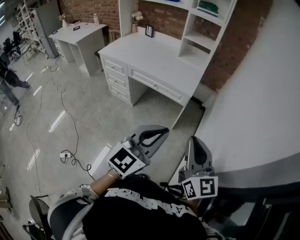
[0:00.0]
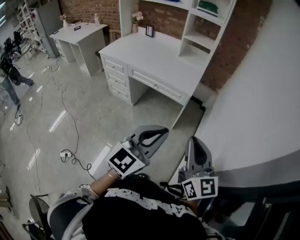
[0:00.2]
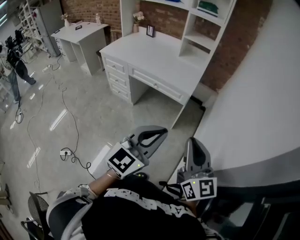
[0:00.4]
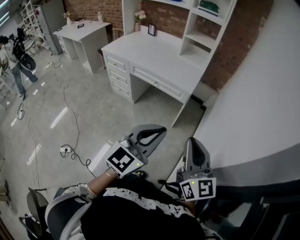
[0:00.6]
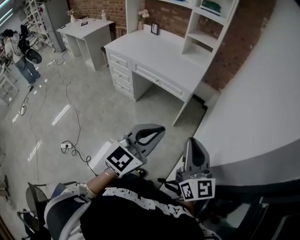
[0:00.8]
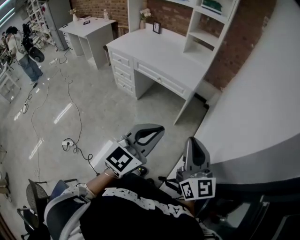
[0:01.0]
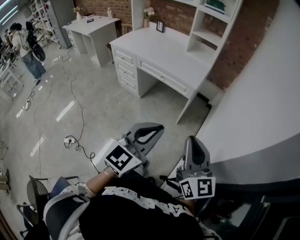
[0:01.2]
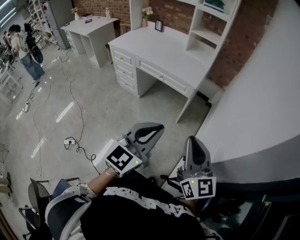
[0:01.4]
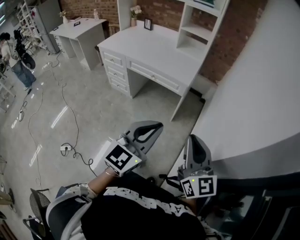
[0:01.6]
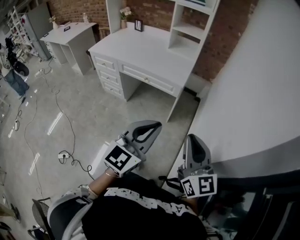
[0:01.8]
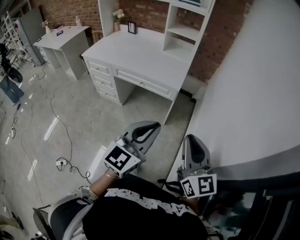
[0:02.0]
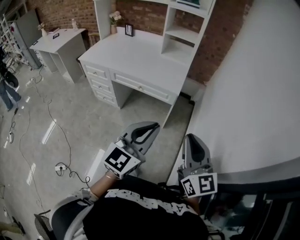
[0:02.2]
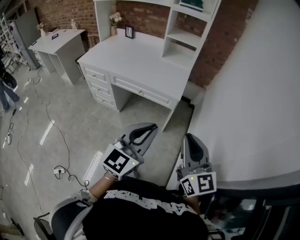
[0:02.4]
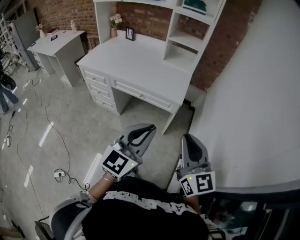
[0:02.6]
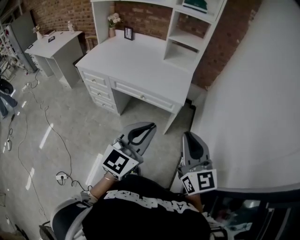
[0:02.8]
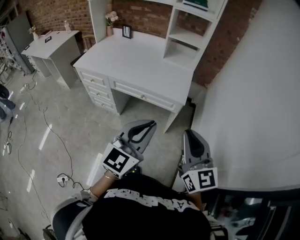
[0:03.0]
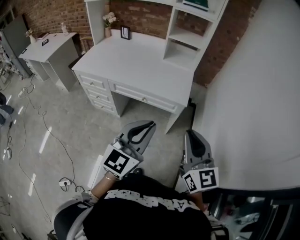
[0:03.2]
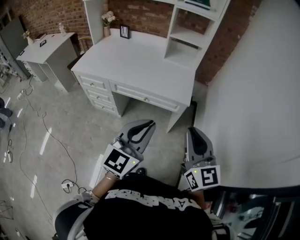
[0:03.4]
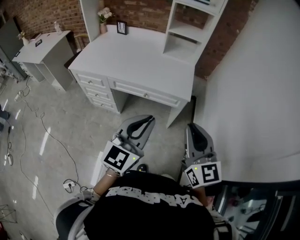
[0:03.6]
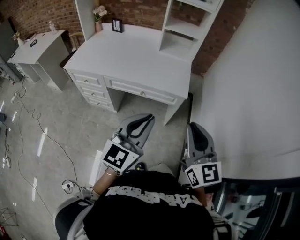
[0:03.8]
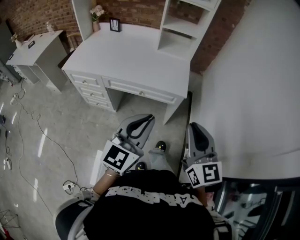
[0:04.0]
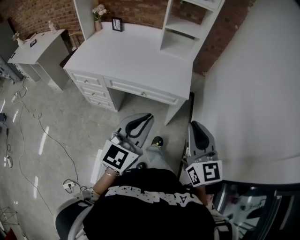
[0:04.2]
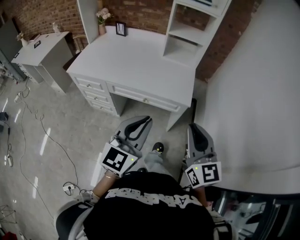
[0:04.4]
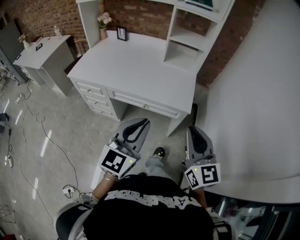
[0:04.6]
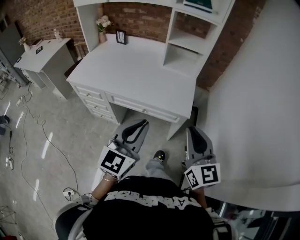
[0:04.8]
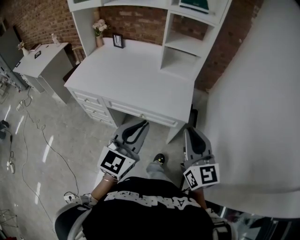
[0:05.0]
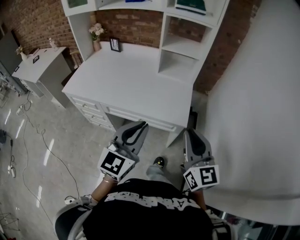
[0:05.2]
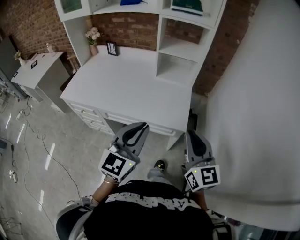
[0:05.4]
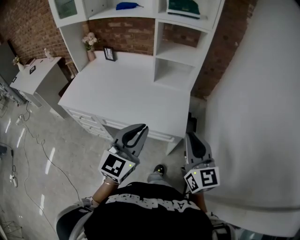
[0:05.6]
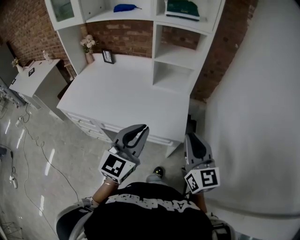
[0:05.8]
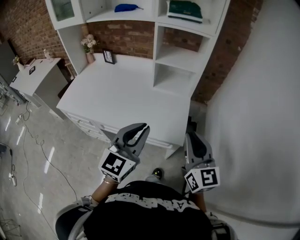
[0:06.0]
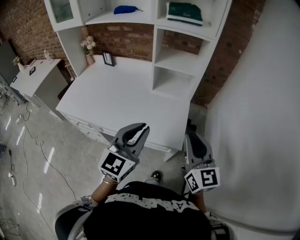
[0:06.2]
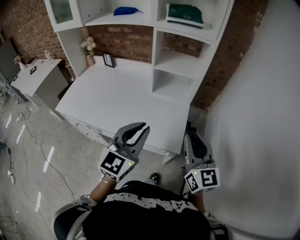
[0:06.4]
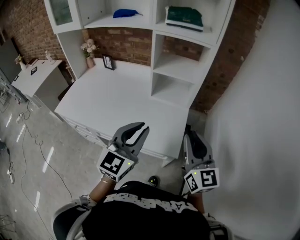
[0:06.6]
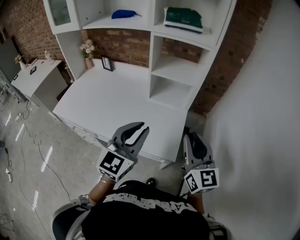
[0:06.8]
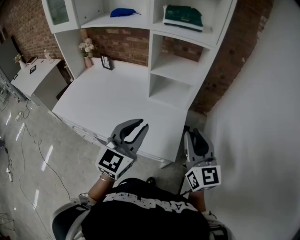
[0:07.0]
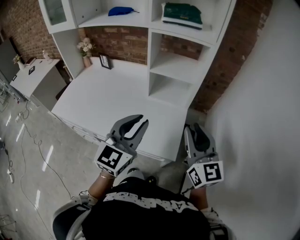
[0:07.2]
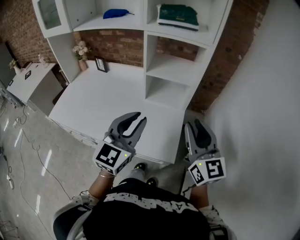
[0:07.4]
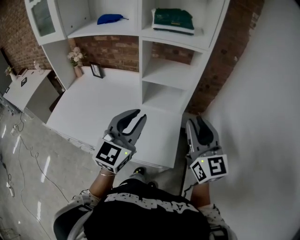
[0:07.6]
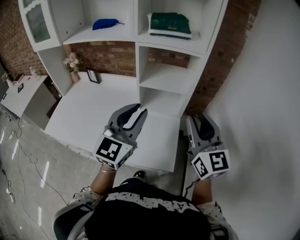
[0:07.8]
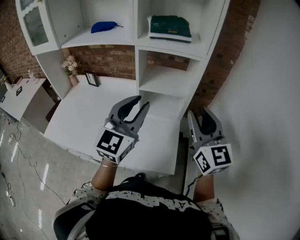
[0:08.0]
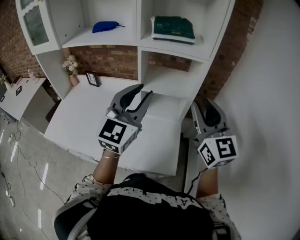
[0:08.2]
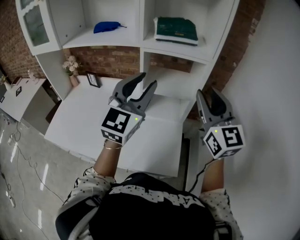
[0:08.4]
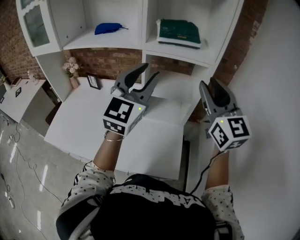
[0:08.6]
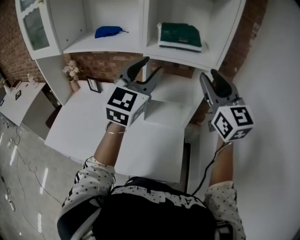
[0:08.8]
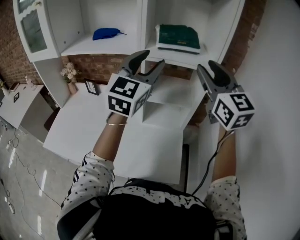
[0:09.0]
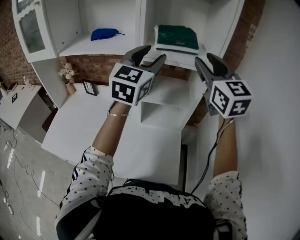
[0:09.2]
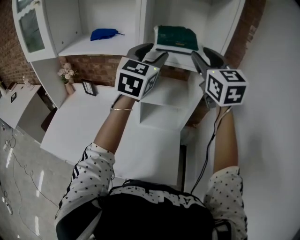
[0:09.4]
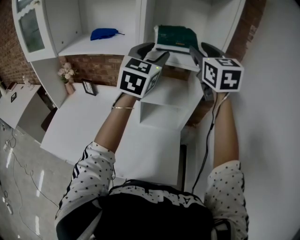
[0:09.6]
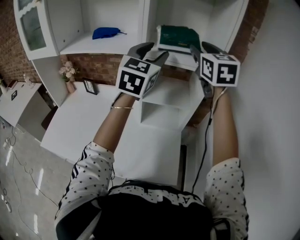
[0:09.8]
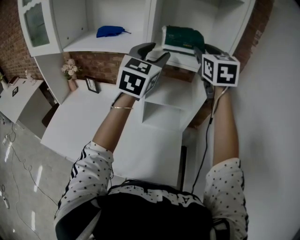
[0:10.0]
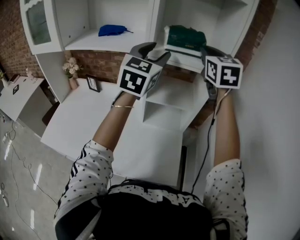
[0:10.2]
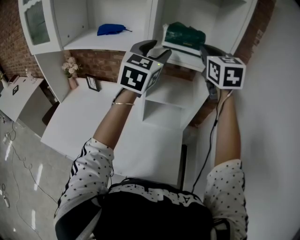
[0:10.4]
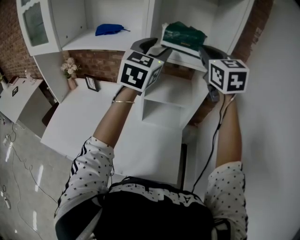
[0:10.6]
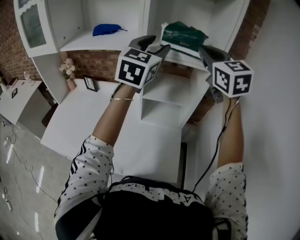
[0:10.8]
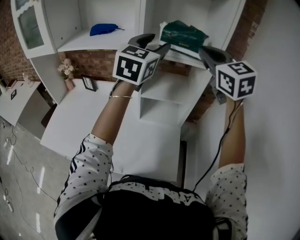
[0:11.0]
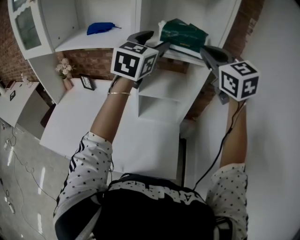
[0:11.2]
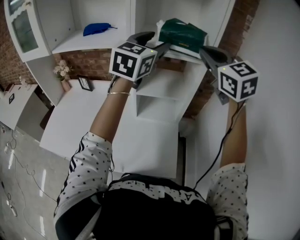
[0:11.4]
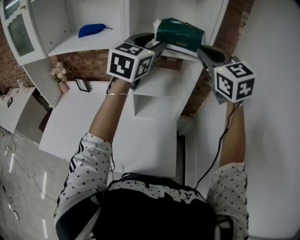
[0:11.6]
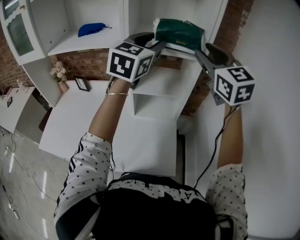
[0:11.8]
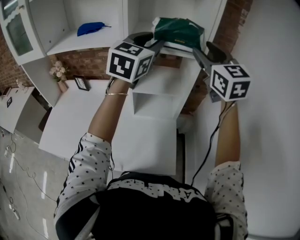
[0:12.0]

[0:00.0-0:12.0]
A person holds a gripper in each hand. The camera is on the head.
0:00.0 to 0:01.6: The right gripper moves approximately 5 cm.
0:01.6 to 0:03.0: Both grippers travel together forward and to the left, some 20 cm.
0:03.0 to 0:04.4: The left gripper is displaced to the left and forward by some 10 cm. The right gripper moves forward, some 5 cm.
0:04.4 to 0:06.0: Both grippers travel together forward, about 20 cm.
0:06.0 to 0:07.6: The right gripper moves forward and upward, roughly 15 cm, while the left gripper heads forward, covering about 15 cm.
0:07.6 to 0:09.0: The grippers both shift forward and upward by approximately 25 cm. The left gripper opens.
0:09.0 to 0:10.4: The left gripper shifts roughly 5 cm forward. Meanwhile the right gripper shifts roughly 10 cm forward, and closes.
0:10.4 to 0:12.0: The left gripper is displaced to the right by roughly 5 cm. The right gripper goes about 10 cm backward and to the right, and opens.

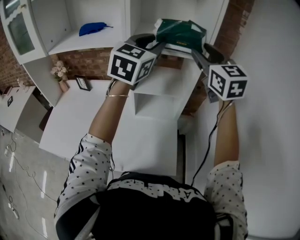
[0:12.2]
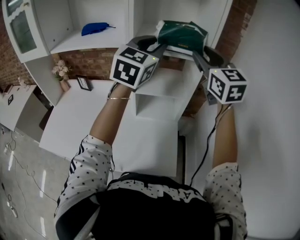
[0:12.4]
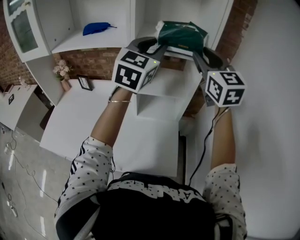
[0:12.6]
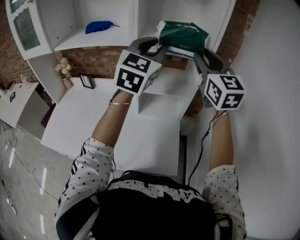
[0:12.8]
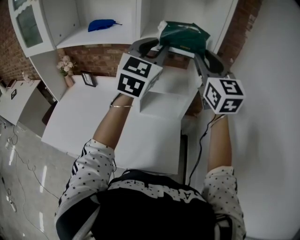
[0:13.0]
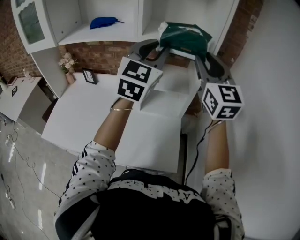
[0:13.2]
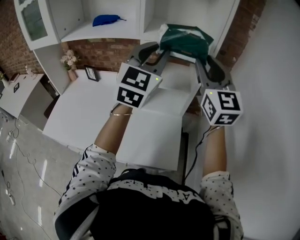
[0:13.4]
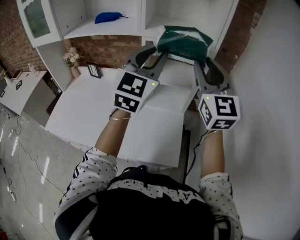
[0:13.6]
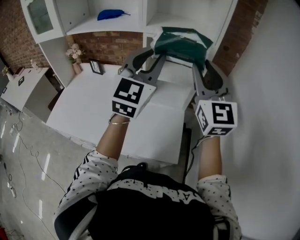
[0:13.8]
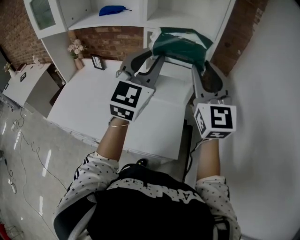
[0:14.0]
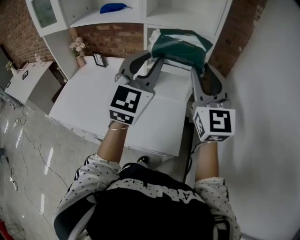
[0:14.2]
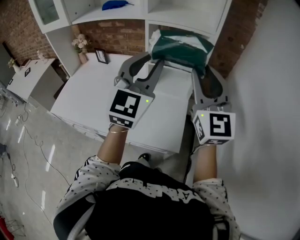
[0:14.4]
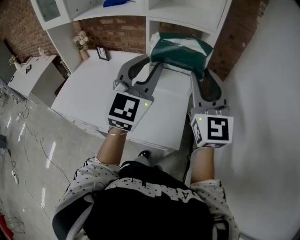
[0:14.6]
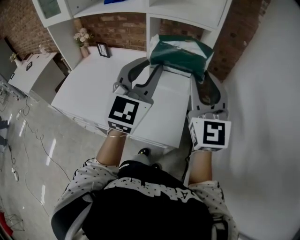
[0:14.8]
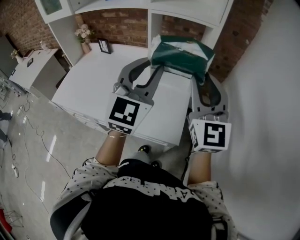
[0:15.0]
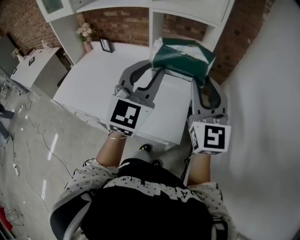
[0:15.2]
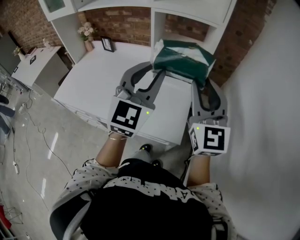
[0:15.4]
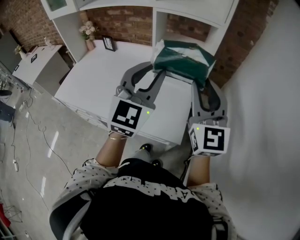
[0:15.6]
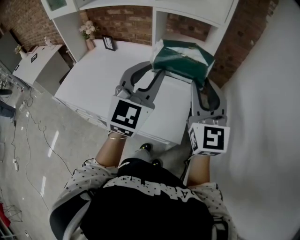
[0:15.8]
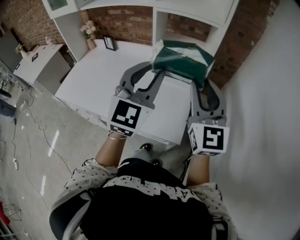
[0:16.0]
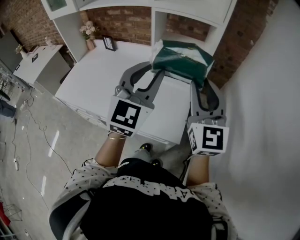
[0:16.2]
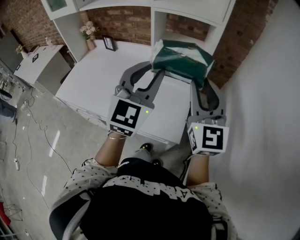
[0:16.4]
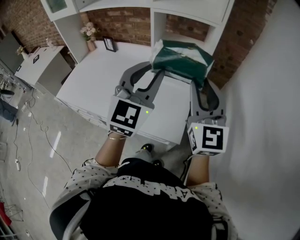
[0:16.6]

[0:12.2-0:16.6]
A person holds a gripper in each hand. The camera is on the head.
0:12.2 to 0:13.6: Both grippers travel together backward, about 10 cm.
0:13.6 to 0:15.2: Both grippers travel together backward and downward, approximately 15 cm.
0:15.2 to 0:16.6: Both grippers stay put.

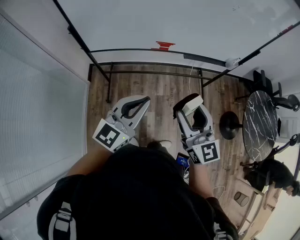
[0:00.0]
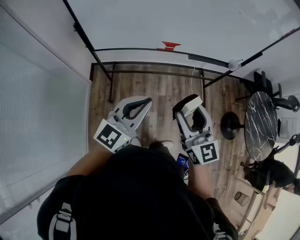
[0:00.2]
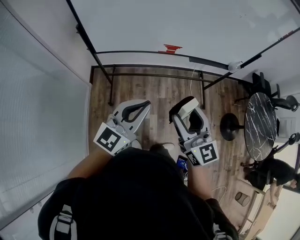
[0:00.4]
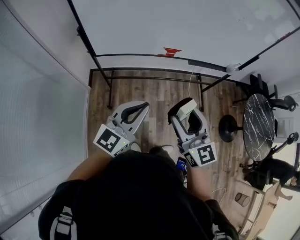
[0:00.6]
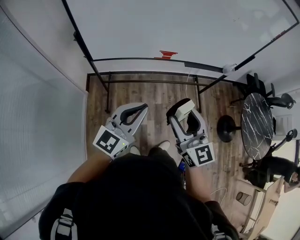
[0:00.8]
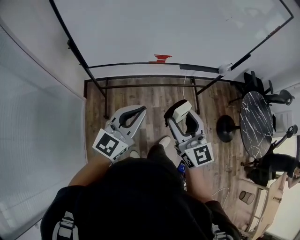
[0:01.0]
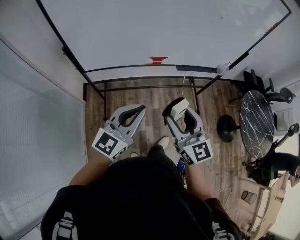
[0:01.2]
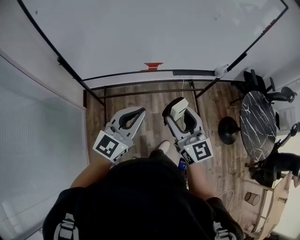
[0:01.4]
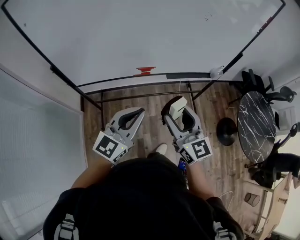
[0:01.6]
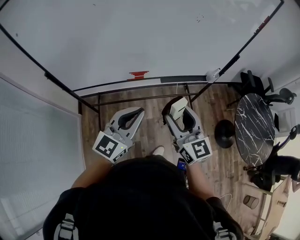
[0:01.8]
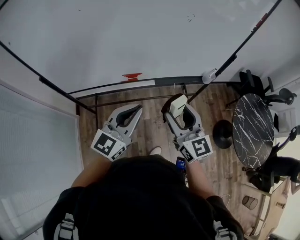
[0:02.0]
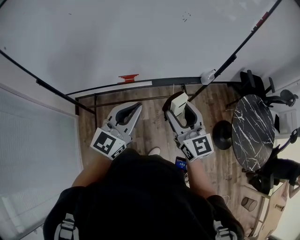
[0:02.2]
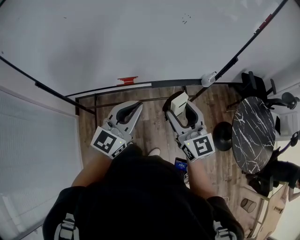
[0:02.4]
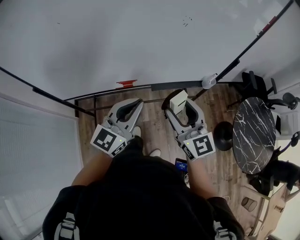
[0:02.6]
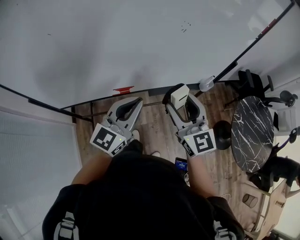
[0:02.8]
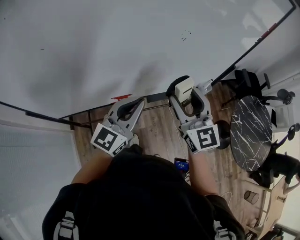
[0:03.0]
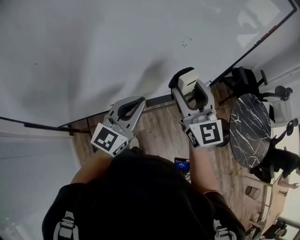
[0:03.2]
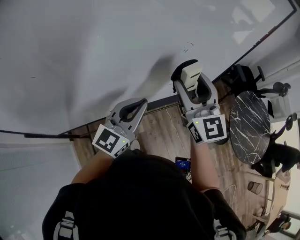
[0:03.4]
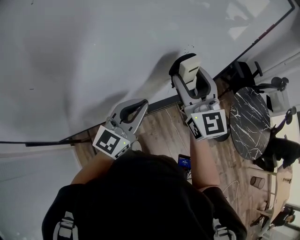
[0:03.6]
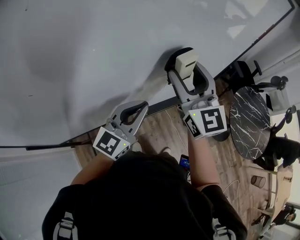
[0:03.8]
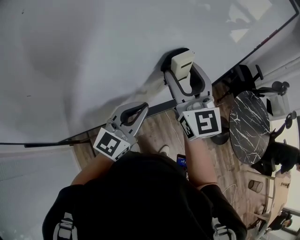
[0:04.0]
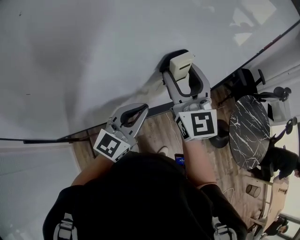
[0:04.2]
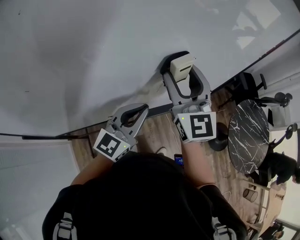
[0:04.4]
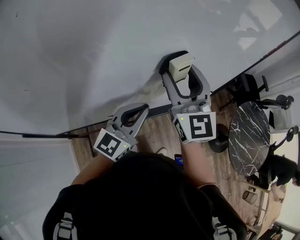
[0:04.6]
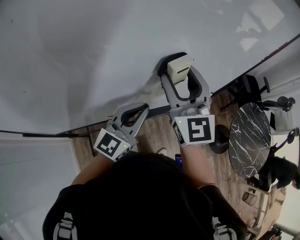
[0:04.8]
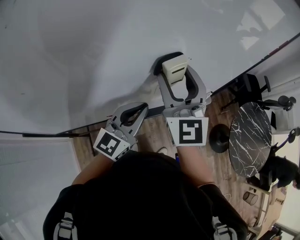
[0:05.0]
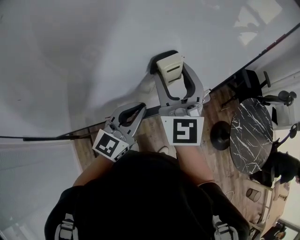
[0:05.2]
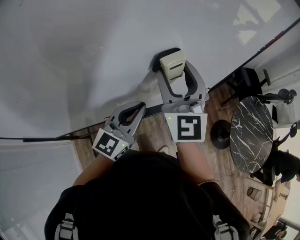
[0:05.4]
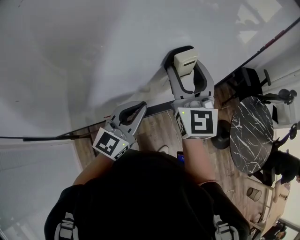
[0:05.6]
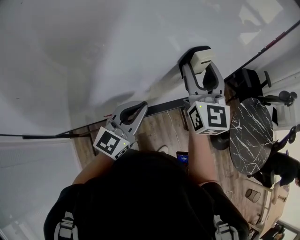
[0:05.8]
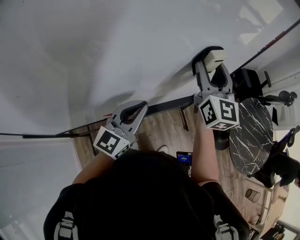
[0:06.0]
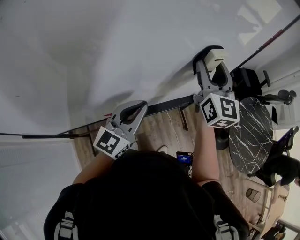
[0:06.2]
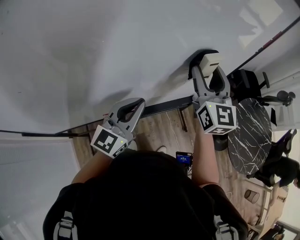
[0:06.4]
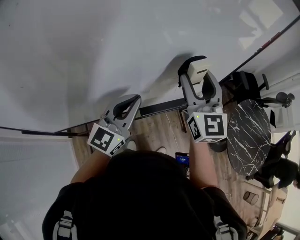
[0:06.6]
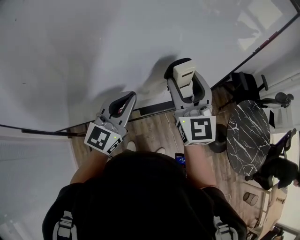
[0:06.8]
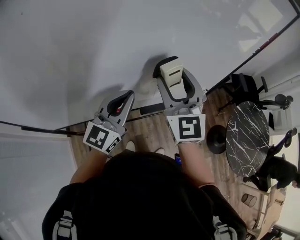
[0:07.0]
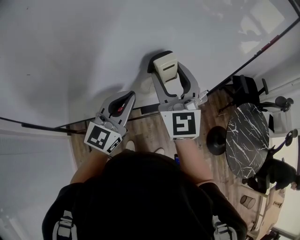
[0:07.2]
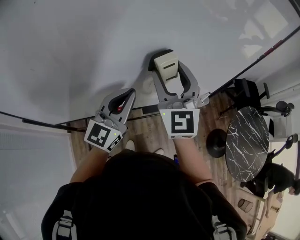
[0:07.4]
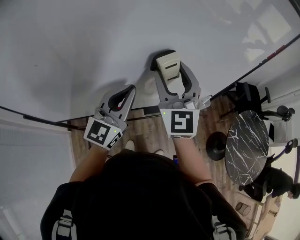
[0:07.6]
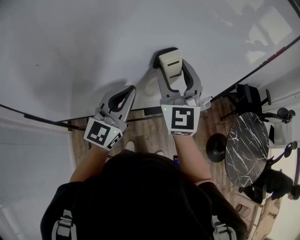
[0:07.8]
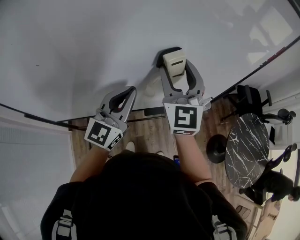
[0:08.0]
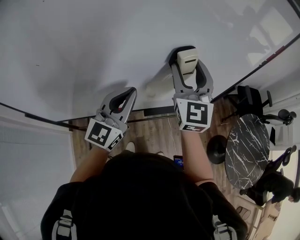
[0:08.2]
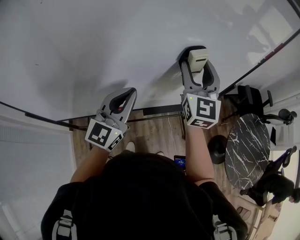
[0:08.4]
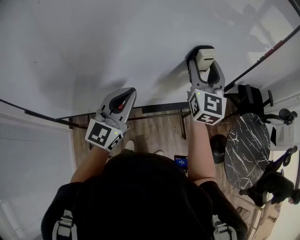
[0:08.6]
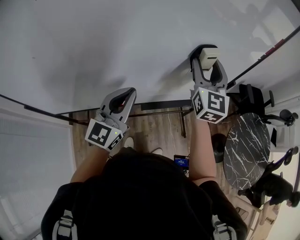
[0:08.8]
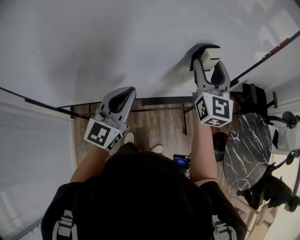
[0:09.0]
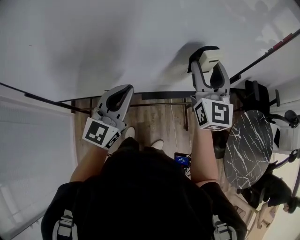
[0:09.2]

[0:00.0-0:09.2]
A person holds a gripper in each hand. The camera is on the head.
0:00.0 to 0:01.6: Both grippers move forward, roughly 10 cm.
0:01.6 to 0:03.0: Both grippers move forward, some 25 cm.
0:03.0 to 0:04.6: The right gripper shifts roughly 15 cm forward, upward and to the left. The left gripper is displaced forward by roughly 10 cm.
0:04.6 to 0:06.2: The right gripper moves to the right and forward, about 15 cm.
0:06.2 to 0:07.6: The left gripper shifts about 10 cm to the left and upward. The right gripper is displaced to the left and backward by approximately 20 cm, and swivels about 20 degrees.
0:07.6 to 0:09.2: The right gripper goes roughly 15 cm to the right. Meanwhile the left gripper heads to the right, covering about 5 cm.
